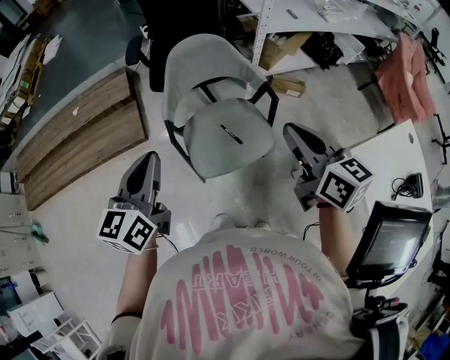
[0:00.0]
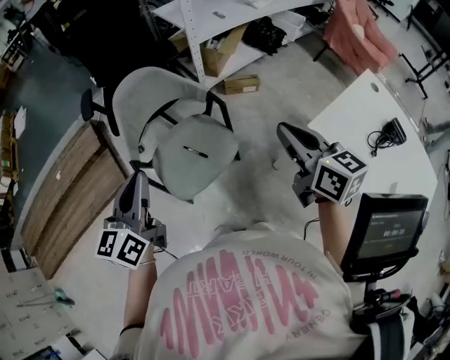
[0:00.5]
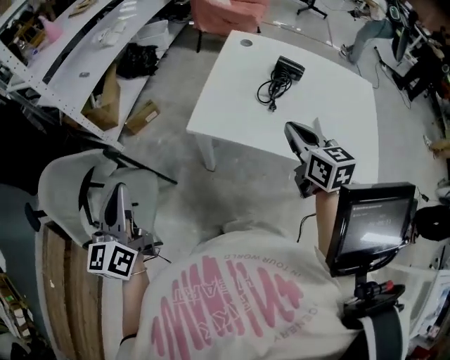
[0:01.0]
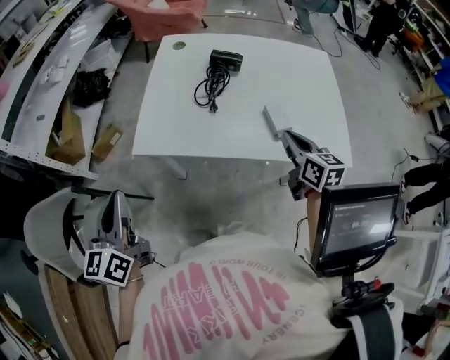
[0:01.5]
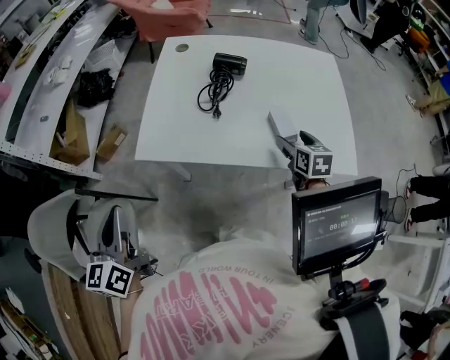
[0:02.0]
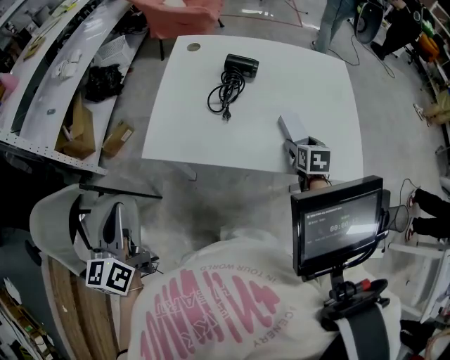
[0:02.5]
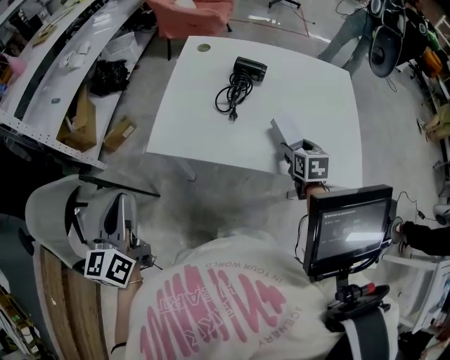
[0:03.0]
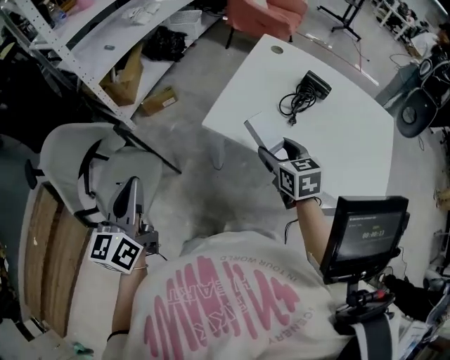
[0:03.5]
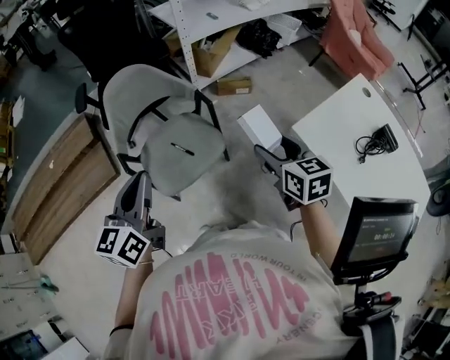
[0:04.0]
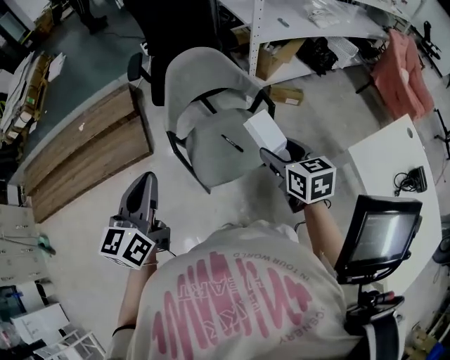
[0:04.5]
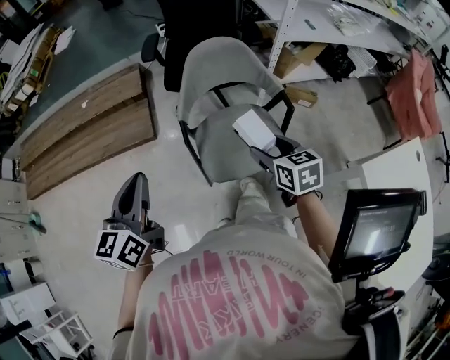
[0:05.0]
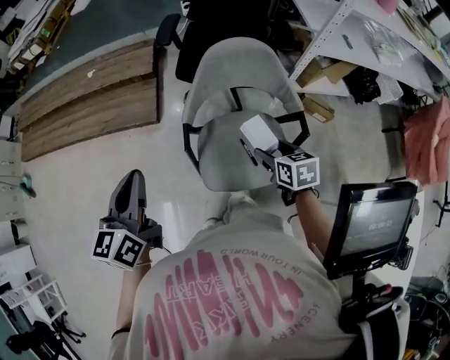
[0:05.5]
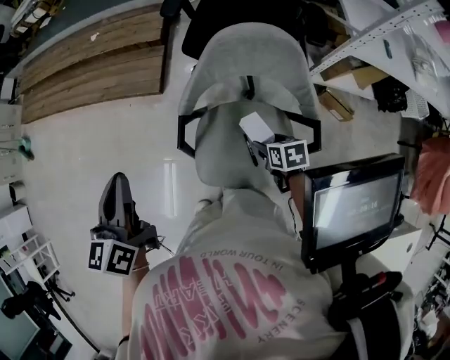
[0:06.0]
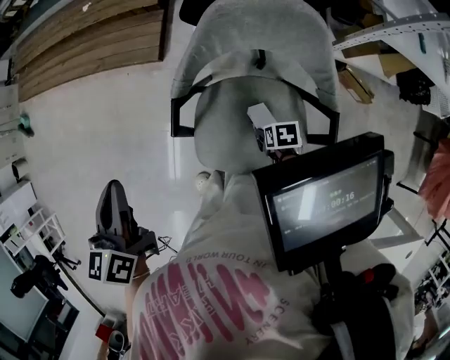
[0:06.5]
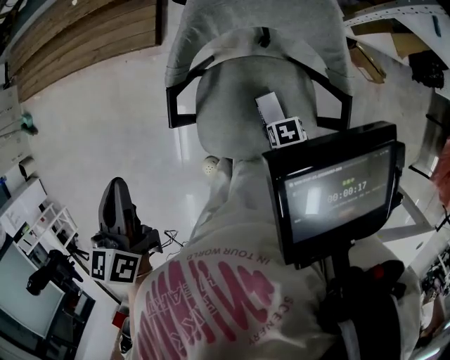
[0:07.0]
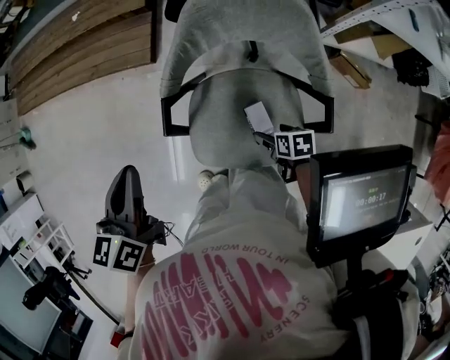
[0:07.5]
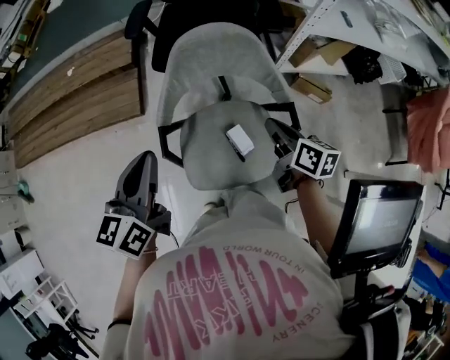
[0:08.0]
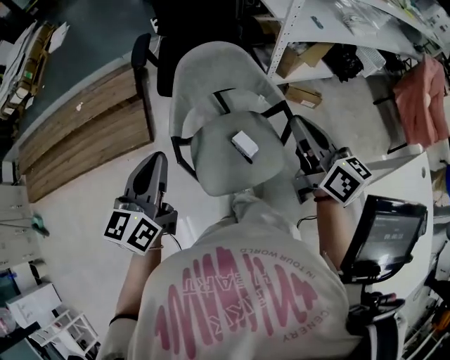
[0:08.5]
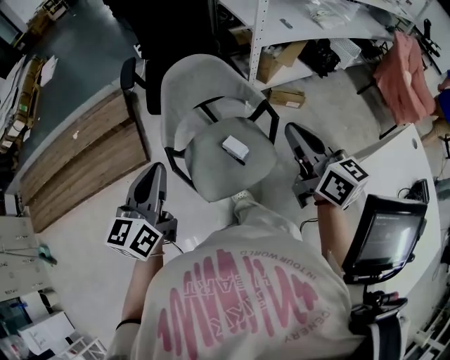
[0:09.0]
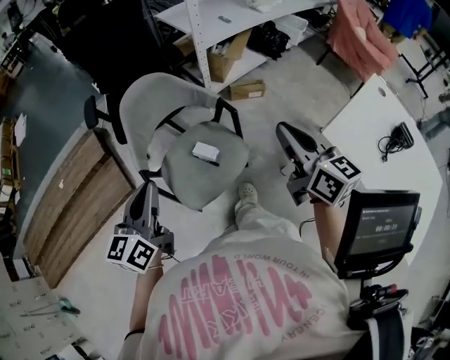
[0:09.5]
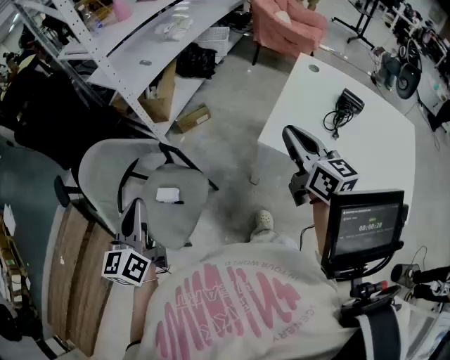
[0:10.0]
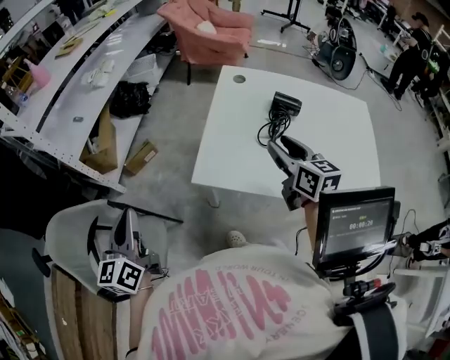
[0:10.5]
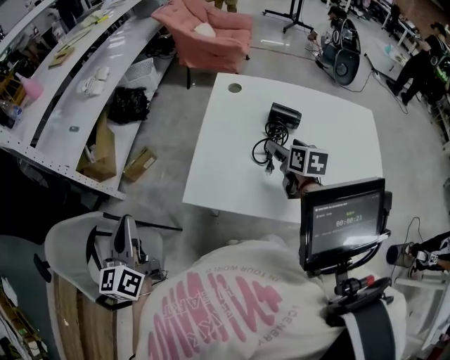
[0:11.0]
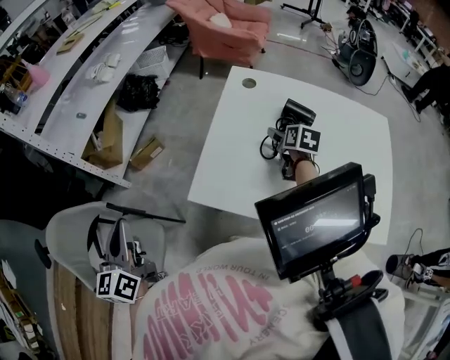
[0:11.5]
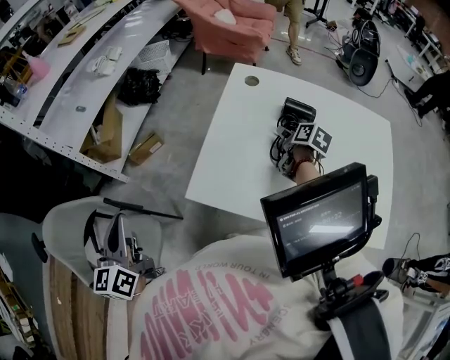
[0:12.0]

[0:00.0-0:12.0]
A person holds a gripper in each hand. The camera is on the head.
0:00.0 to 0:02.0: The two grippers travel together, approximately 50 cm. The left gripper swivels roughly 50 degrees, while the right gripper turns by roughly 80 degrees, and opens.
0:02.0 to 0:04.0: The right gripper ends up roughly 50 cm from where it was, and turns by some 60 degrees. Meanwhile the left gripper changes place by some 30 cm, and turns by about 40 degrees.
0:04.0 to 0:06.0: The right gripper ends up about 40 cm from where it was, and angles its fingers downward, by roughly 30 degrees, while the left gripper ends up approximately 25 cm from where it was, and rotates some 50 degrees.
0:06.0 to 0:08.0: The right gripper shifts approximately 15 cm upward, points its fingers roughly 30 degrees further upward, and closes up; the left gripper ends up some 10 cm from where it was, and changes its angle by approximately 20 degrees.
0:08.0 to 0:10.0: The left gripper moves approximately 20 cm, and swivels roughly 40 degrees; the right gripper changes place by about 50 cm, and turns by roughly 60 degrees.
0:10.0 to 0:12.0: The left gripper is displaced to the right and forward by approximately 25 cm. The right gripper goes approximately 40 cm to the right, downward and forward, points its fingers about 40 degrees further downward, and opens.

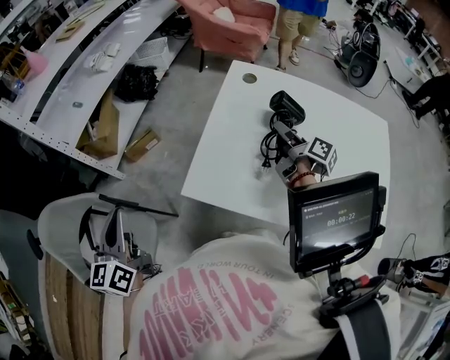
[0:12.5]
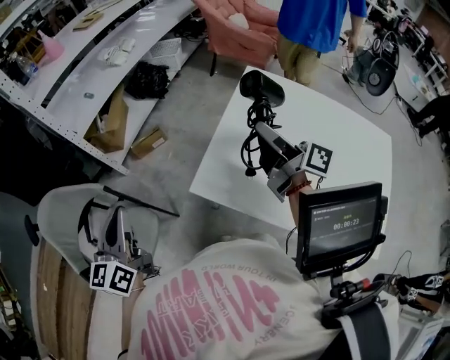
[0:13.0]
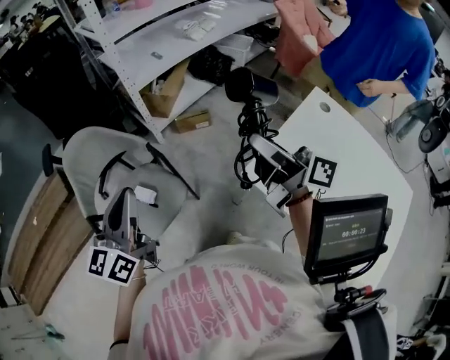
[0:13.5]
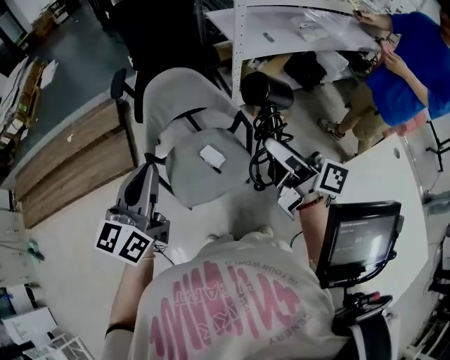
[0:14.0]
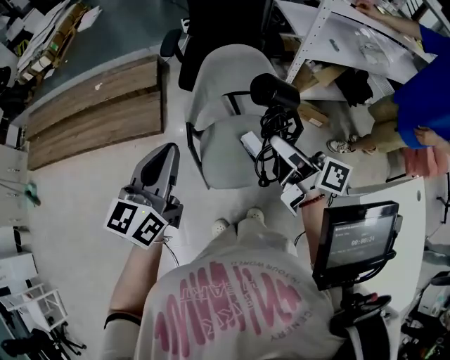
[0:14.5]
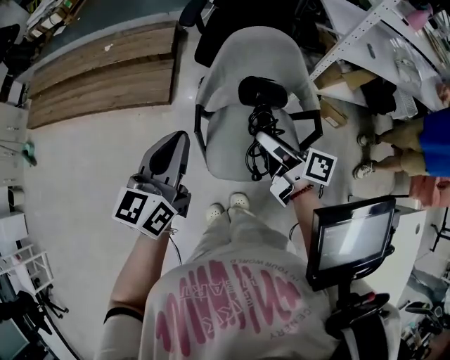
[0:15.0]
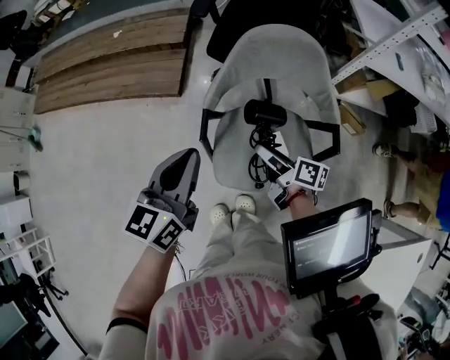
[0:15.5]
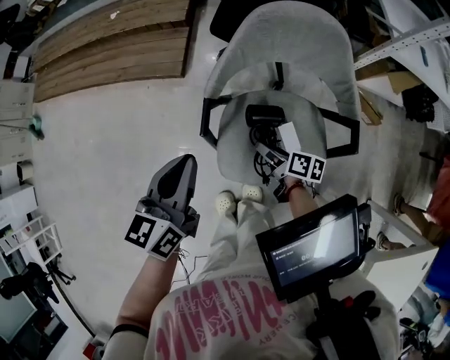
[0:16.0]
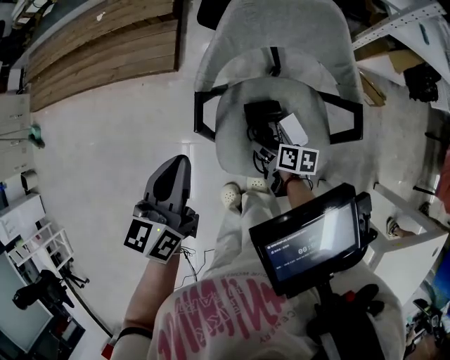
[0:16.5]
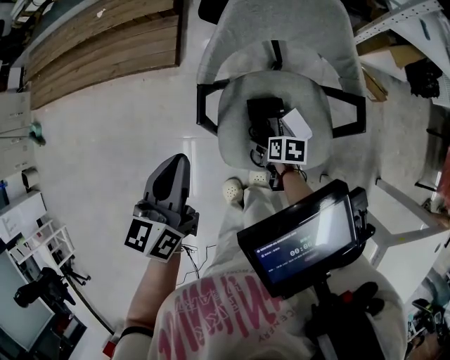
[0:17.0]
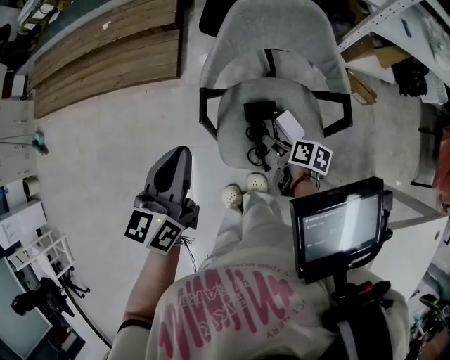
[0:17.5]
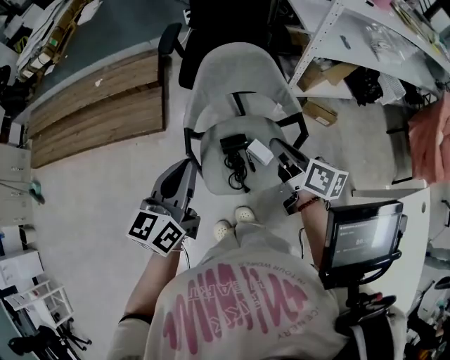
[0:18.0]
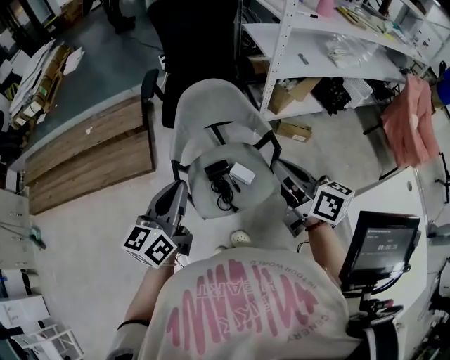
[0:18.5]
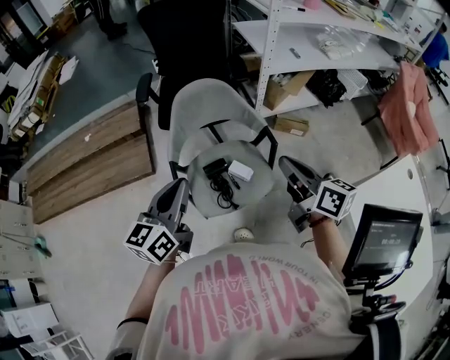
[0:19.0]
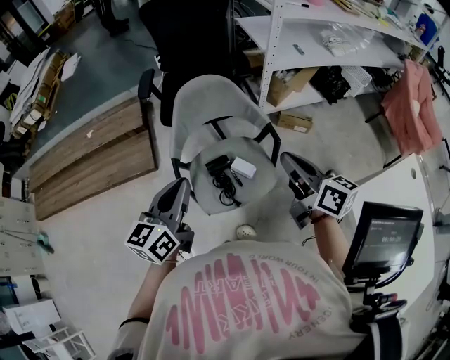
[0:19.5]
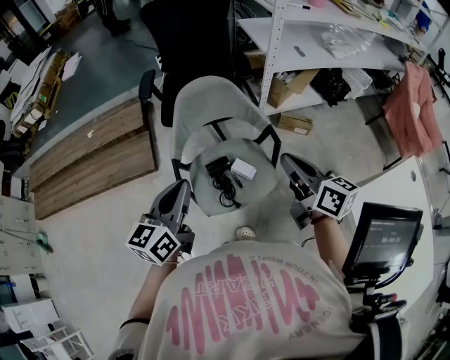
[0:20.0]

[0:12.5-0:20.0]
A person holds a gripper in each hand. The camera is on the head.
0:12.5 to 0:14.5: The two grippers travel together, roughly 60 cm. The left gripper swivels about 40 degrees, while the right gripper swivels about 90 degrees.
0:14.5 to 0:16.5: The left gripper travels downward by about 15 cm, and turns by some 30 degrees. Meanwhile the right gripper shifts approximately 40 cm downward, and tips its fingers downward by about 50 degrees.
0:16.5 to 0:18.0: The left gripper moves upward, about 10 cm, and swivels some 20 degrees, while the right gripper heads upward, covering roughly 30 cm, rotates about 40 degrees, and closes.
0:18.0 to 0:20.0: The right gripper heads upward, to the right and backward, covering about 15 cm.

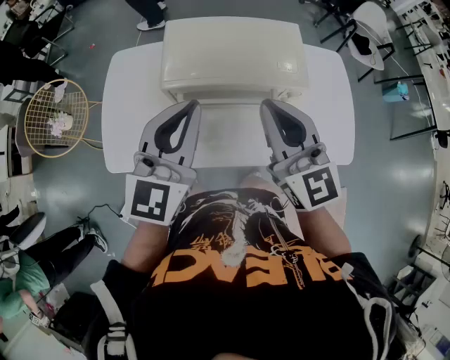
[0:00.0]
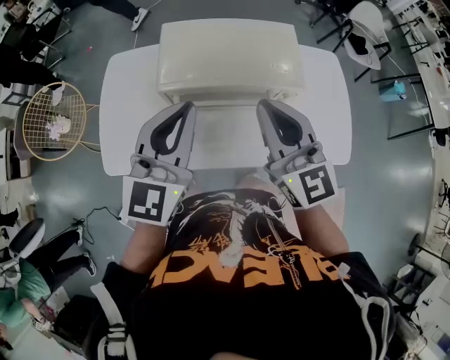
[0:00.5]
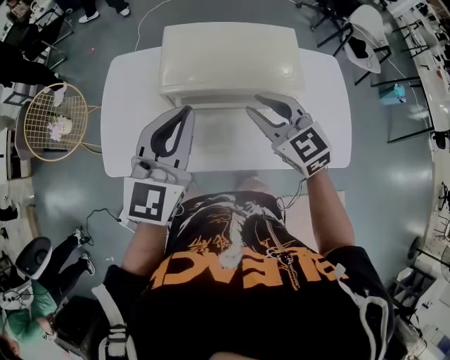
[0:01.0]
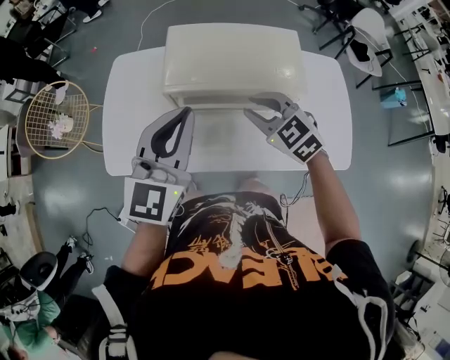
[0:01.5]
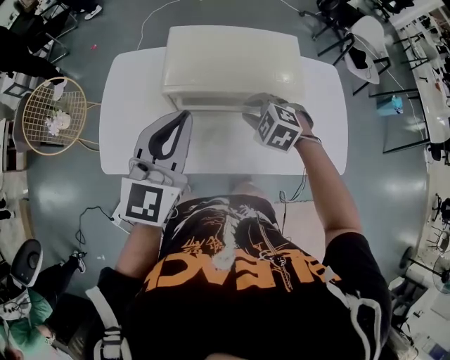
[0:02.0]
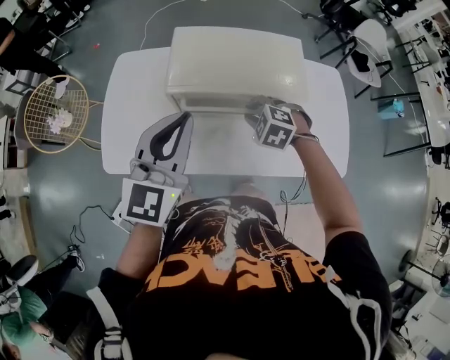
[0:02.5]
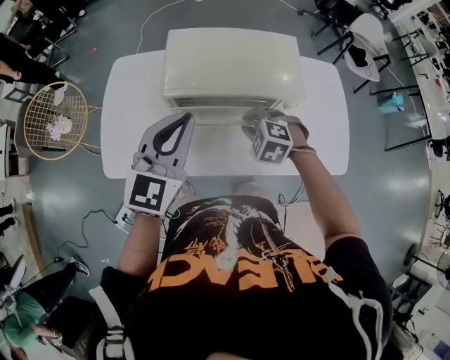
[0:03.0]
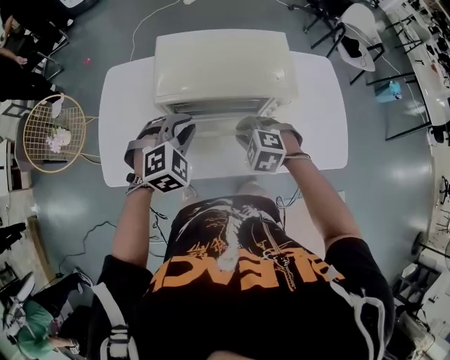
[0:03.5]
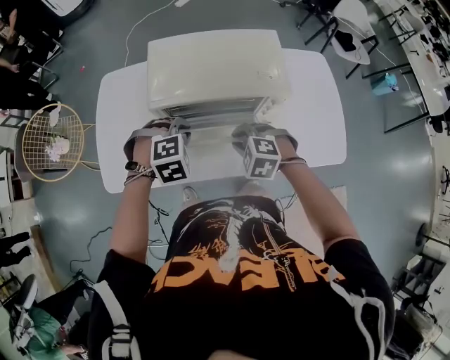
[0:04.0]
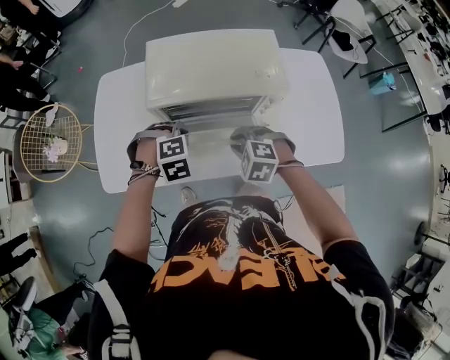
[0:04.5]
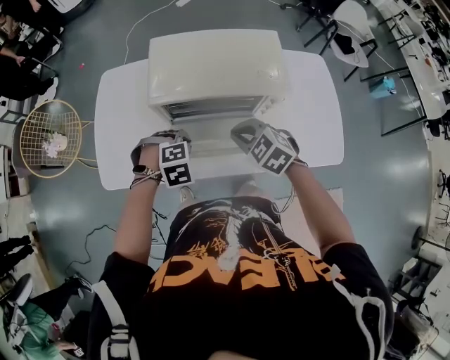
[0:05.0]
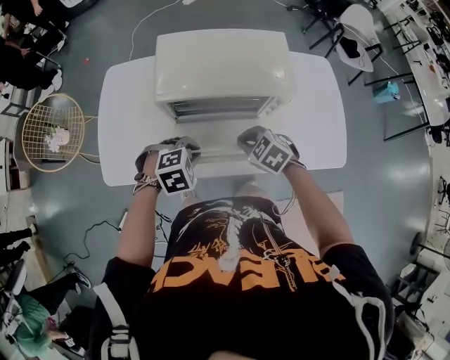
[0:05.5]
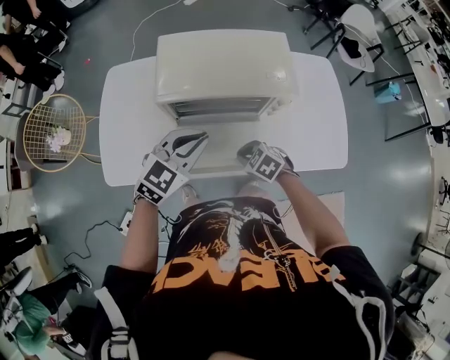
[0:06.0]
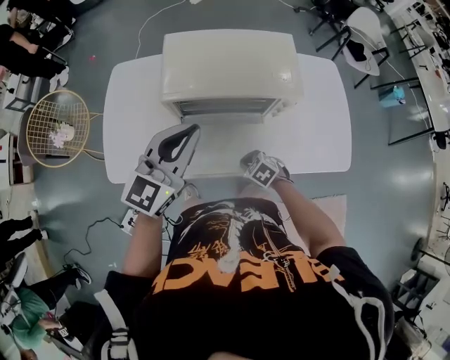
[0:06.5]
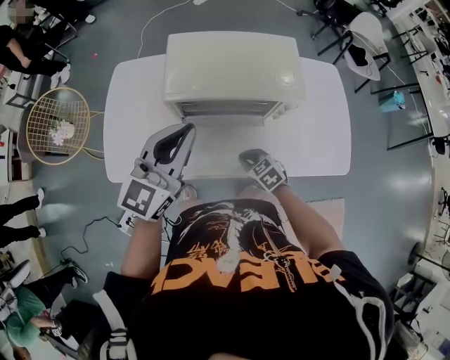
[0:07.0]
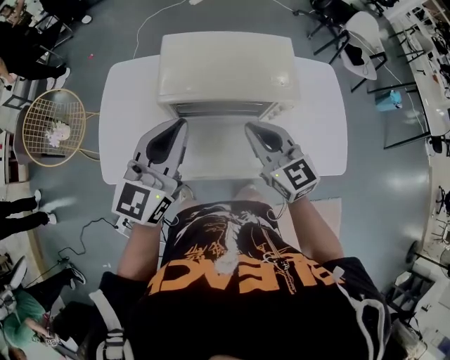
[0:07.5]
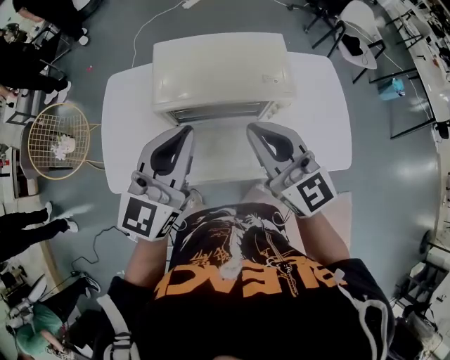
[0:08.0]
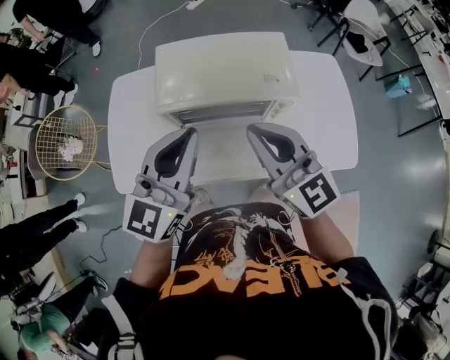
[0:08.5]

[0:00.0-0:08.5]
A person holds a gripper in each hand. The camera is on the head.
0:00.0 to 0:02.0: The right gripper shifts roughly 20 cm downward, tips its fingers downward by about 60 degrees, and opens up.
0:02.0 to 0:04.0: The left gripper shifts about 25 cm downward, and points its fingers approximately 60 degrees further downward; the right gripper shifts approximately 10 cm backward and downward.
0:04.0 to 0:06.5: The right gripper travels downward by some 15 cm, and changes its angle by roughly 30 degrees. The left gripper is displaced upward by roughly 15 cm, and angles its fingers upward, by approximately 60 degrees.
0:06.5 to 0:08.5: The left gripper heads upward, covering approximately 5 cm. Meanwhile the right gripper shifts about 40 cm upward, and tilts its fingers about 70 degrees upward.
